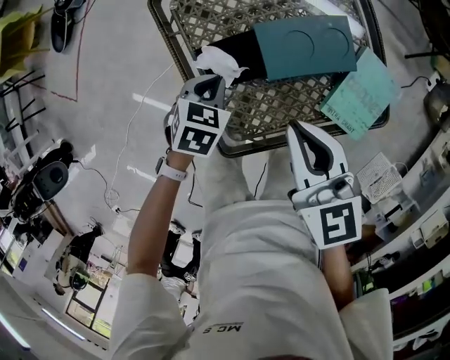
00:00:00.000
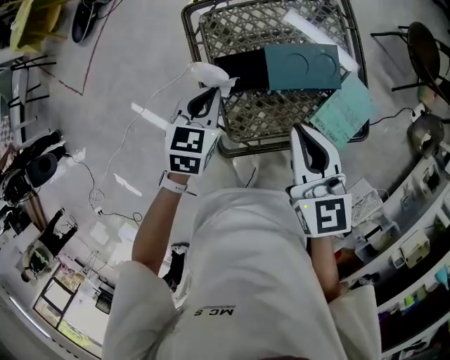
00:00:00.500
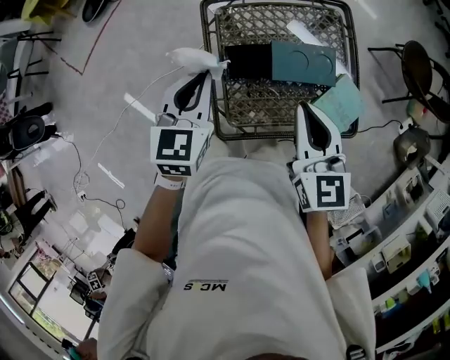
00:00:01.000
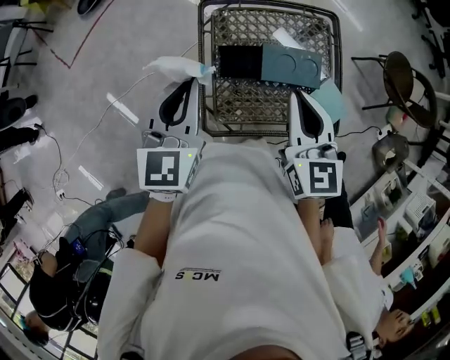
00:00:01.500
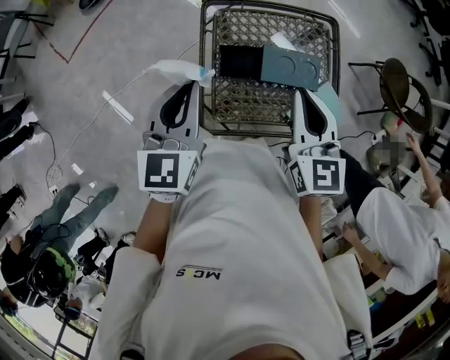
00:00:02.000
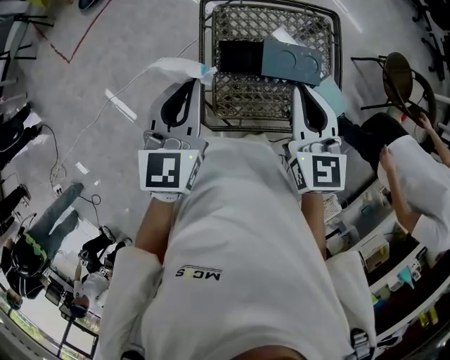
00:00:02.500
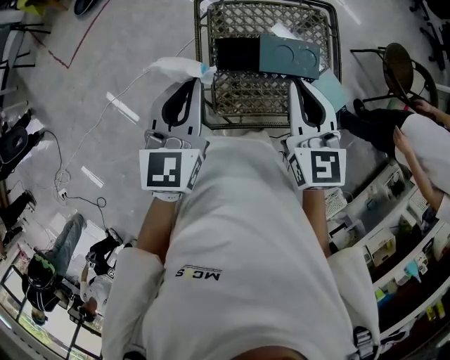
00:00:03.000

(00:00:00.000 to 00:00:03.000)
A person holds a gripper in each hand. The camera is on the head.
00:00:00.000 - 00:00:01.500: The right gripper shifts approximately 15 cm upward. The left gripper travels upward by roughly 35 cm, and points its fingers roughly 50 degrees further upward.
00:00:01.500 - 00:00:03.000: The grippers make only small movements.

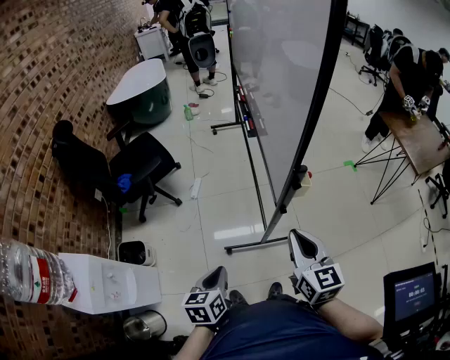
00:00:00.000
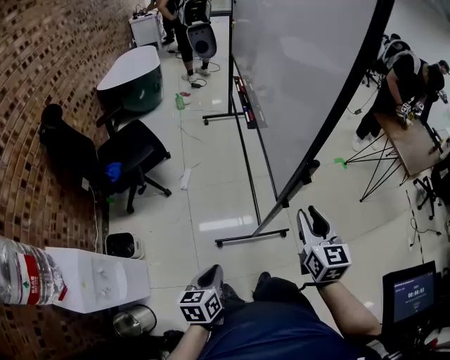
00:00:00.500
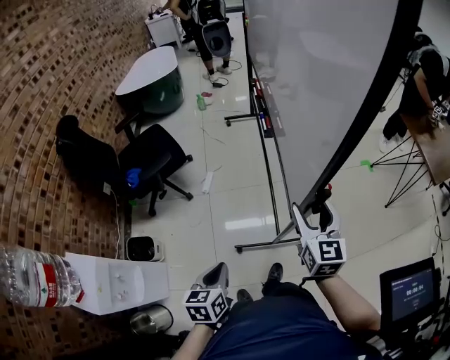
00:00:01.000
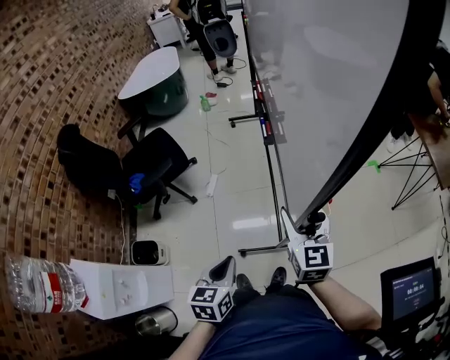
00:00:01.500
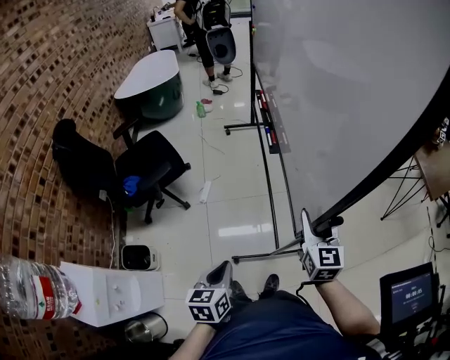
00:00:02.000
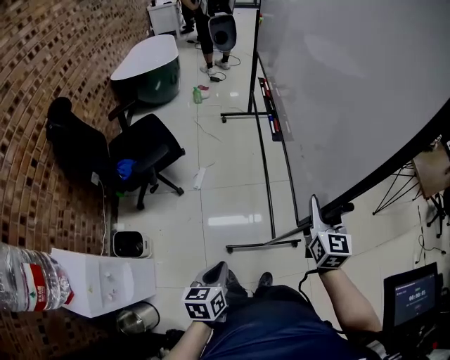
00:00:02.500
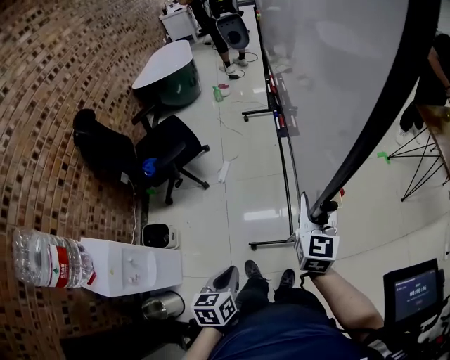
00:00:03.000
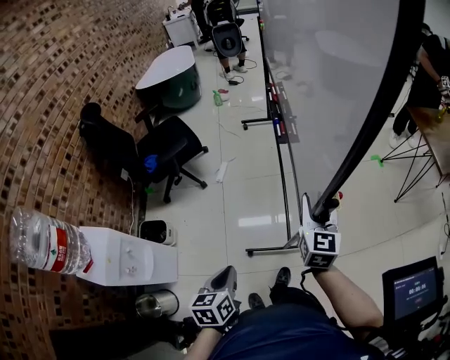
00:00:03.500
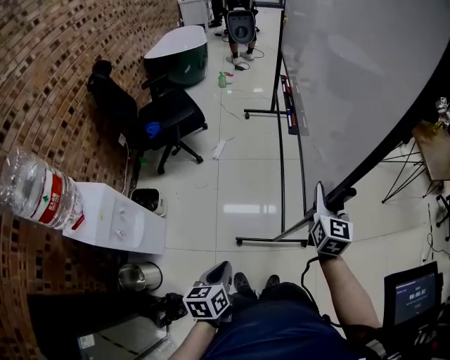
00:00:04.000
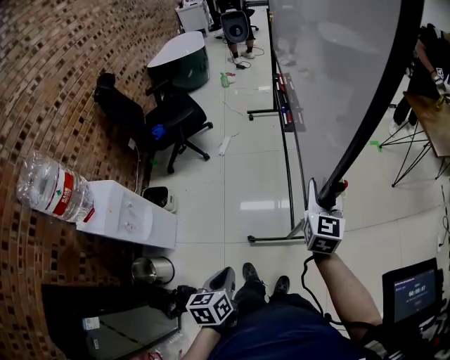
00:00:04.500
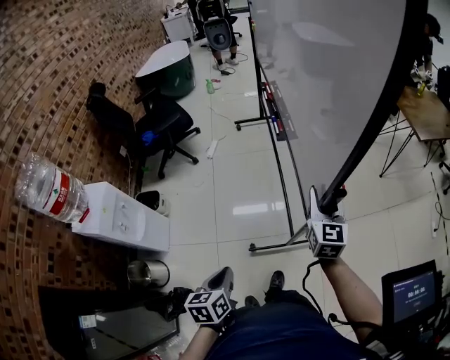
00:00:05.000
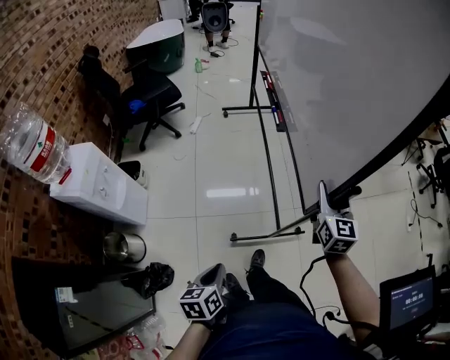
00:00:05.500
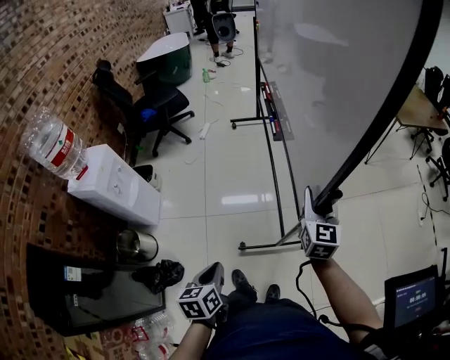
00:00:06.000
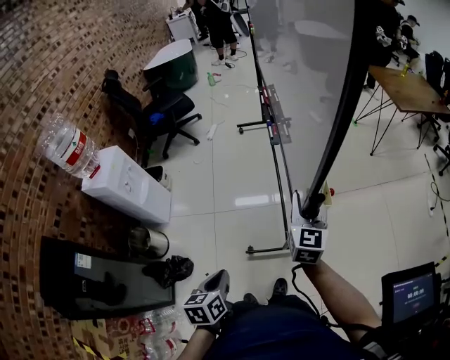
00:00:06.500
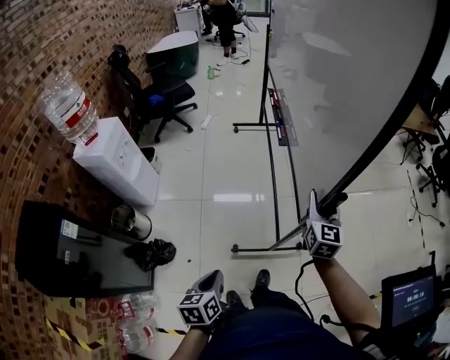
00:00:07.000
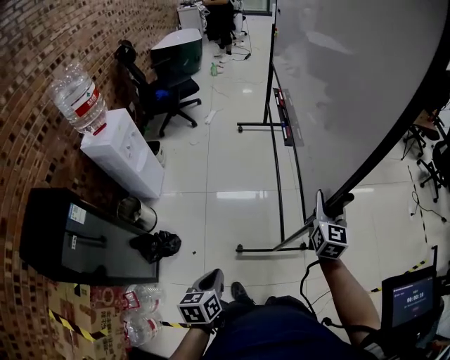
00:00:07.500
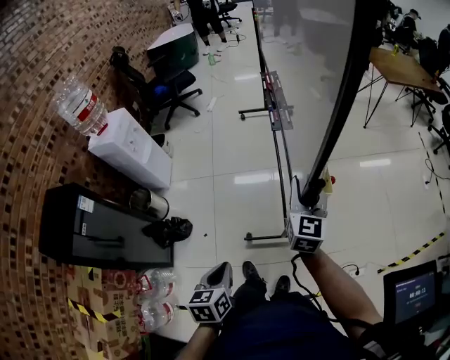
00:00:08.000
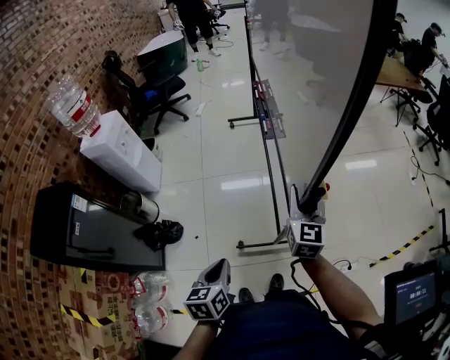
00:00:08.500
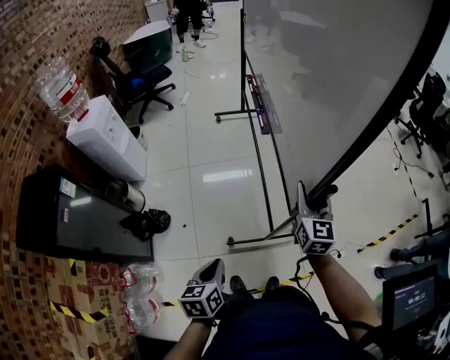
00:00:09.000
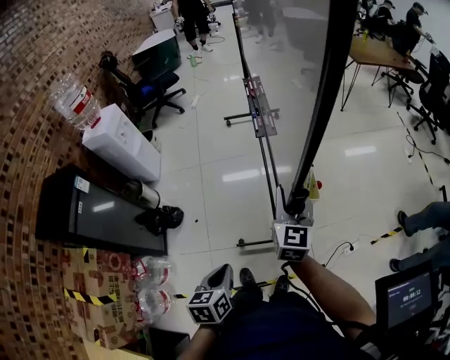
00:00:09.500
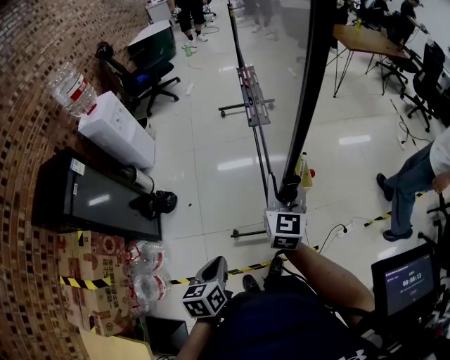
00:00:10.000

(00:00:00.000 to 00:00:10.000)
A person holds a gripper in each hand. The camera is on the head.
00:00:00.000 - 00:00:02.000: The right gripper heads forward, covering about 15 cm, and opens its fingers, while the left gripper travels forward by some 10 cm.
00:00:02.000 - 00:00:04.000: The right gripper travels backward by roughly 15 cm. The left gripper travels backward by some 30 cm.
00:00:04.000 - 00:00:06.000: Both grippers travel together backward and to the right, about 30 cm.
00:00:06.000 - 00:00:08.000: The left gripper travels backward and to the right by about 30 cm; the right gripper goes about 25 cm backward.
00:00:08.000 - 00:00:10.000: Both grippers travel together backward, some 20 cm.

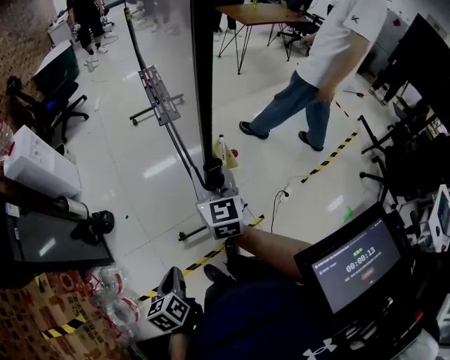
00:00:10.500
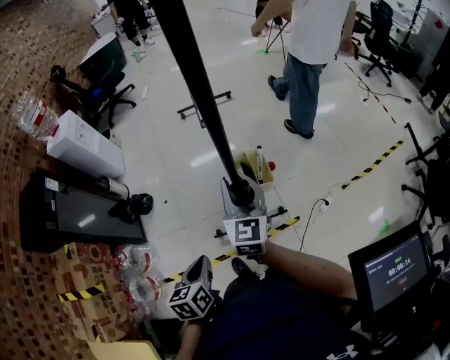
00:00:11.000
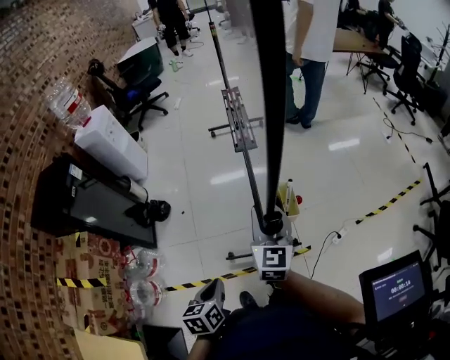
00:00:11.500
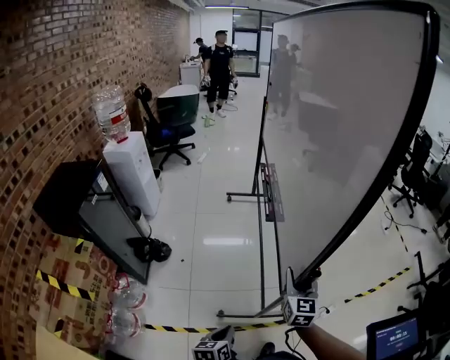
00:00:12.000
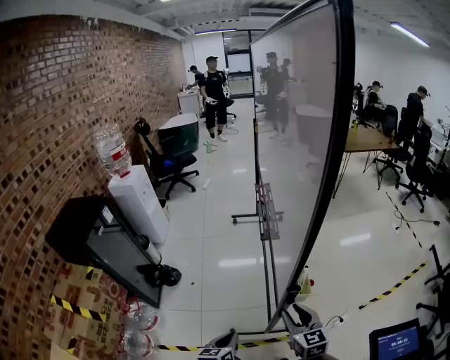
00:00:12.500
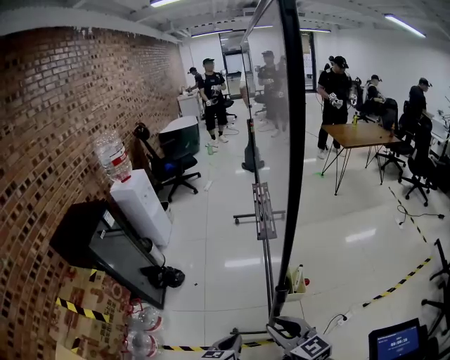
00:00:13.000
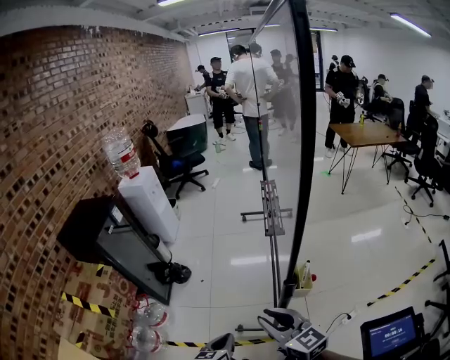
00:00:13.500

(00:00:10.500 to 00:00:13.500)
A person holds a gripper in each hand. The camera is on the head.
00:00:10.500 - 00:00:12.000: The left gripper moves backward, approximately 5 cm; the right gripper goes approximately 10 cm backward and to the right.
00:00:12.000 - 00:00:13.500: The right gripper ends up some 20 cm from where it was, and changes its angle by approximately 50 degrees.

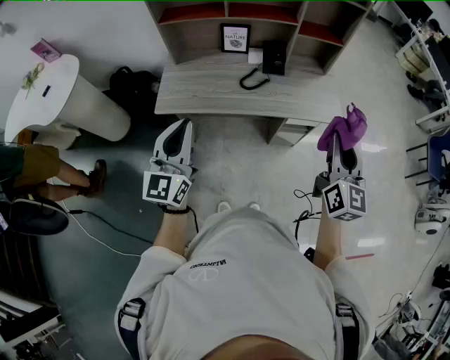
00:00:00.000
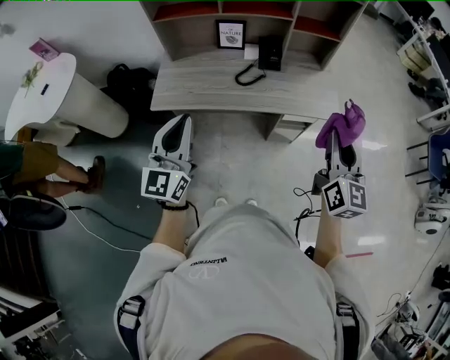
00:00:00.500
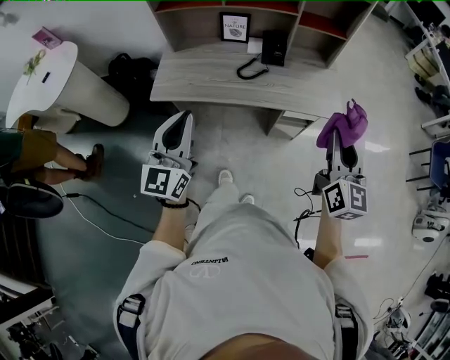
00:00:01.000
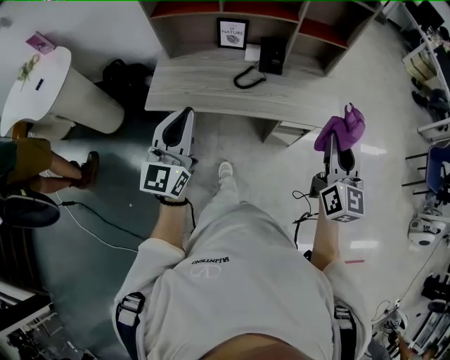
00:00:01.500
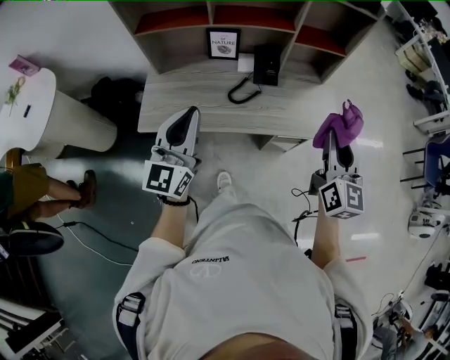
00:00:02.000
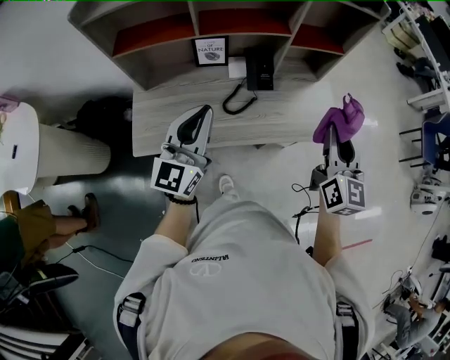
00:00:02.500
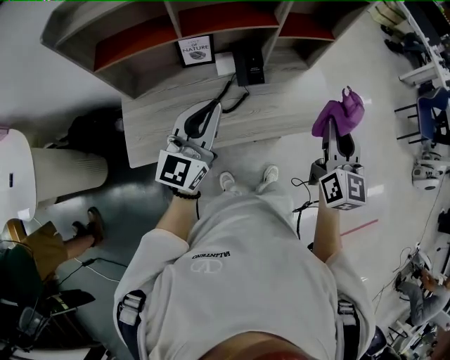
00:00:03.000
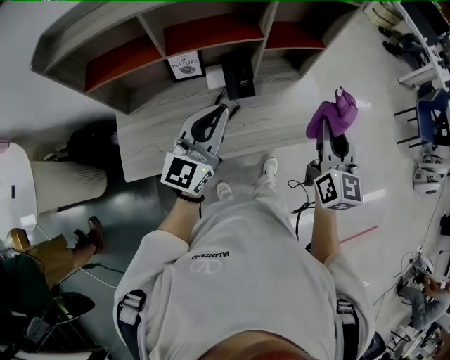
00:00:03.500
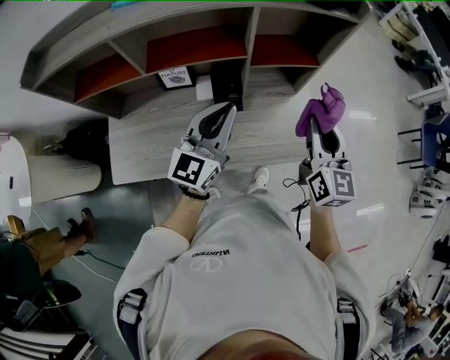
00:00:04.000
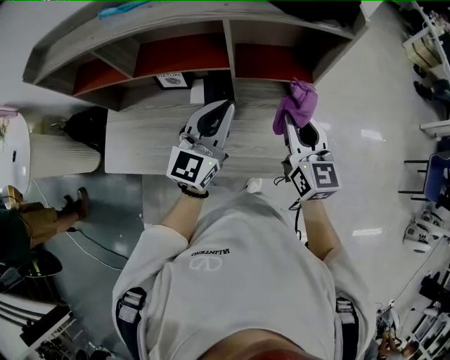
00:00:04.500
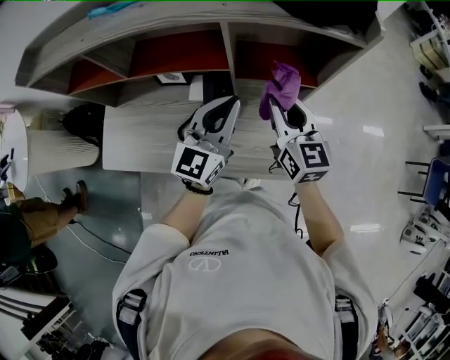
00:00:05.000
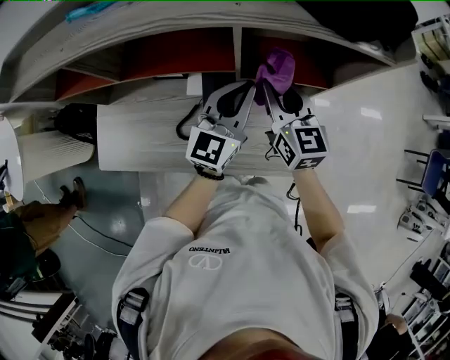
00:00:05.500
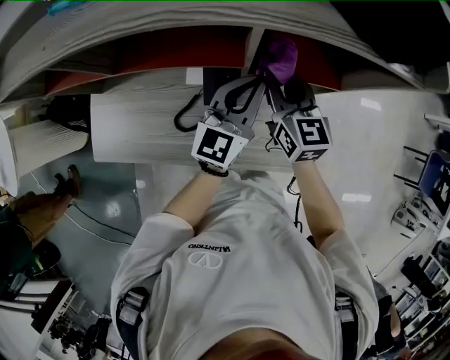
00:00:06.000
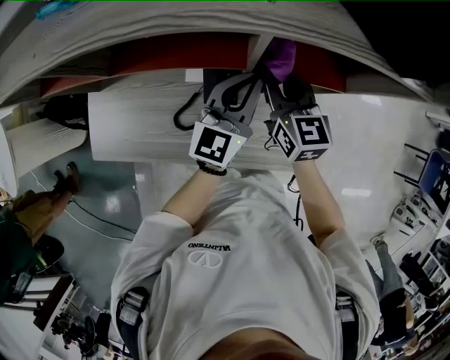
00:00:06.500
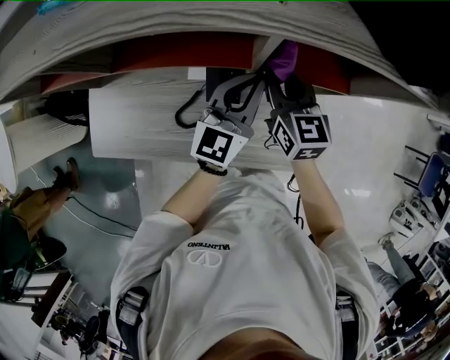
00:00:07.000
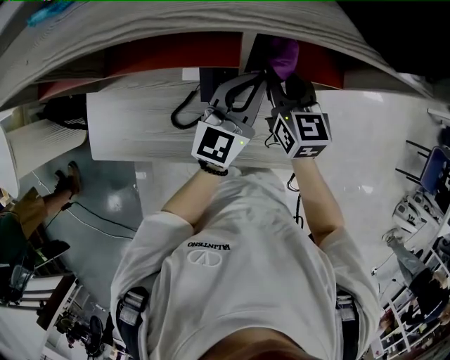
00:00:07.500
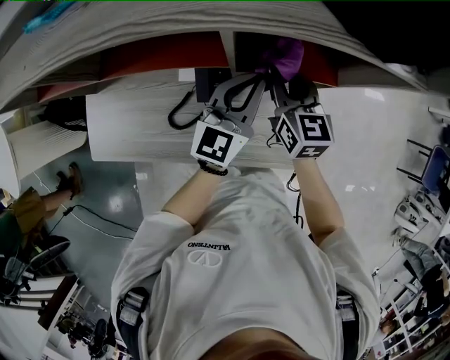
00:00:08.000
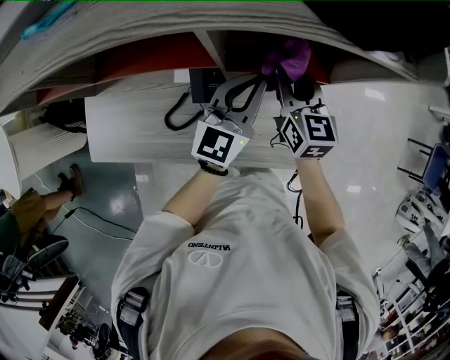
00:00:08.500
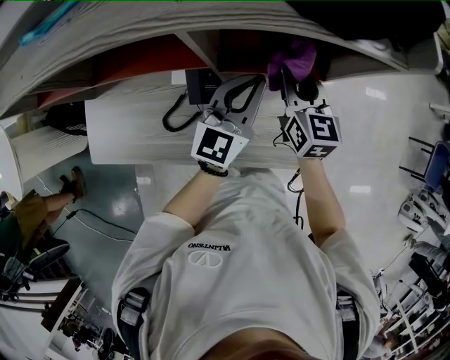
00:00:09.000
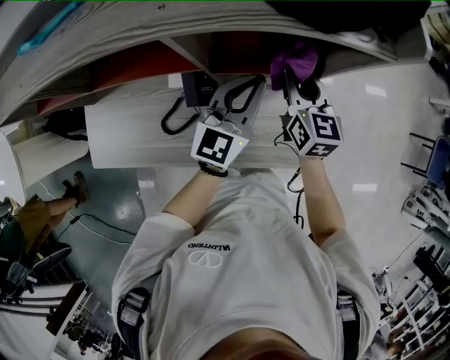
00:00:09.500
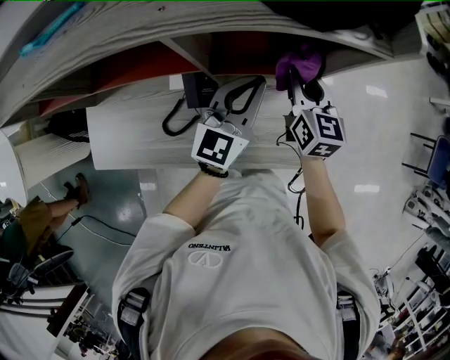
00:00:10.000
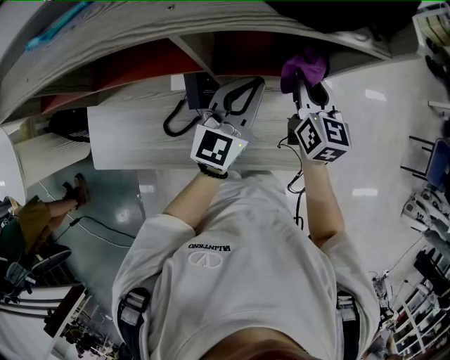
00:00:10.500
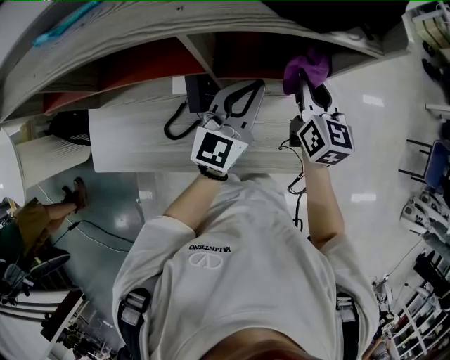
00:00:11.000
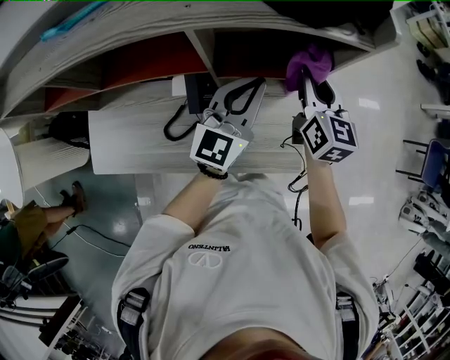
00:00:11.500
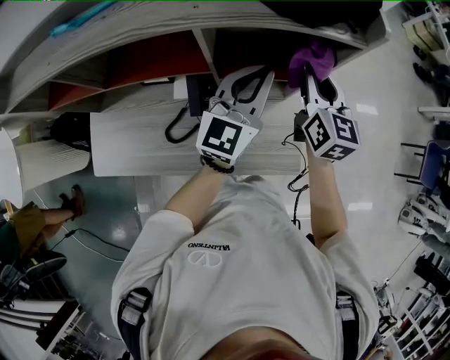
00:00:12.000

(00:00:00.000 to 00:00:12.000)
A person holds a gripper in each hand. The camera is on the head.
00:00:00.000 - 00:00:02.000: Both grippers travel together forward, roughly 15 cm.
00:00:02.000 - 00:00:04.000: The left gripper heads forward and to the right, covering about 30 cm; the right gripper goes some 20 cm forward.
00:00:04.000 - 00:00:06.000: The right gripper travels forward, to the left and downward by roughly 25 cm, and turns by roughly 30 degrees, while the left gripper goes approximately 20 cm forward and downward.
00:00:06.000 - 00:00:08.000: The grippers make only small movements.
00:00:08.000 - 00:00:10.000: The left gripper moves to the right, roughly 5 cm; the right gripper moves to the right, some 10 cm.
00:00:10.000 - 00:00:12.000: Both grippers travel together upward, roughly 10 cm.
